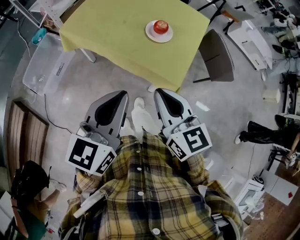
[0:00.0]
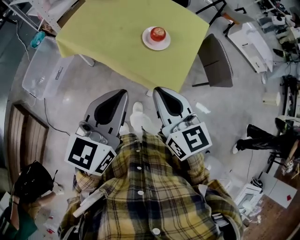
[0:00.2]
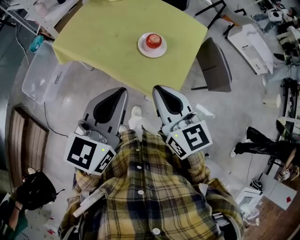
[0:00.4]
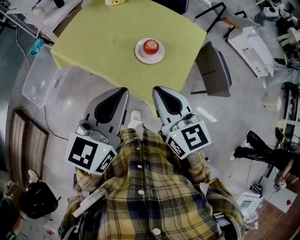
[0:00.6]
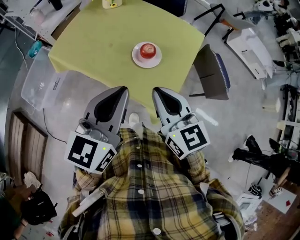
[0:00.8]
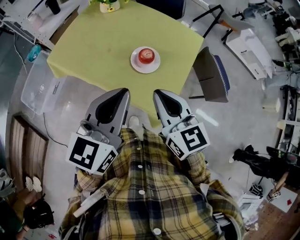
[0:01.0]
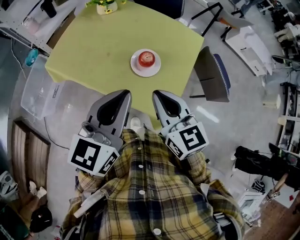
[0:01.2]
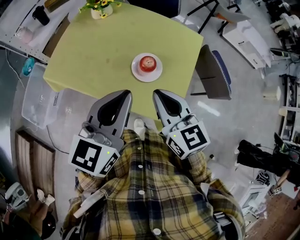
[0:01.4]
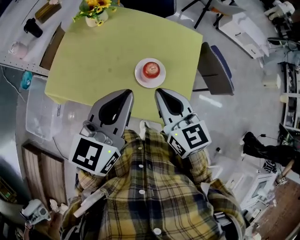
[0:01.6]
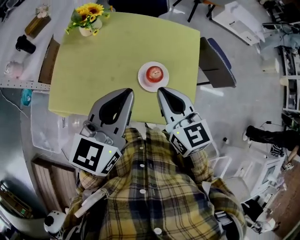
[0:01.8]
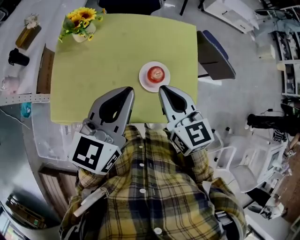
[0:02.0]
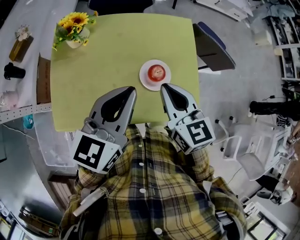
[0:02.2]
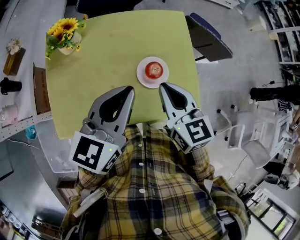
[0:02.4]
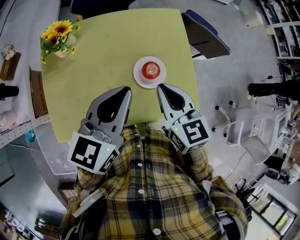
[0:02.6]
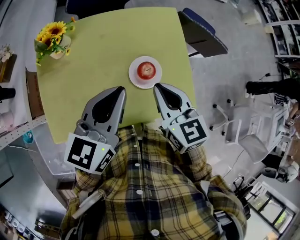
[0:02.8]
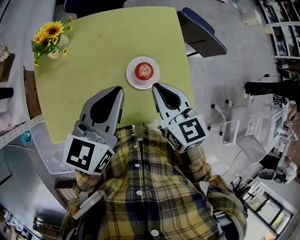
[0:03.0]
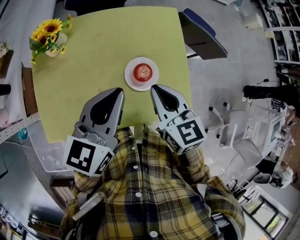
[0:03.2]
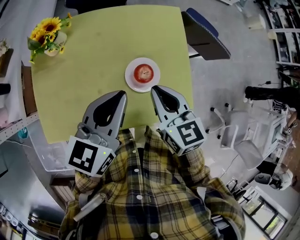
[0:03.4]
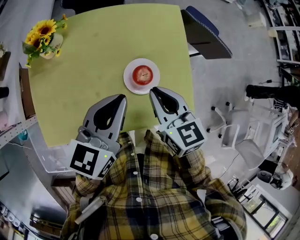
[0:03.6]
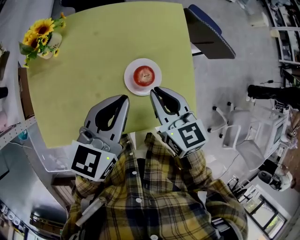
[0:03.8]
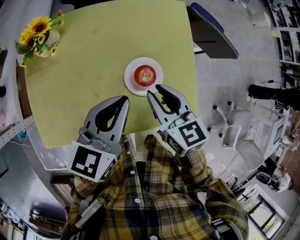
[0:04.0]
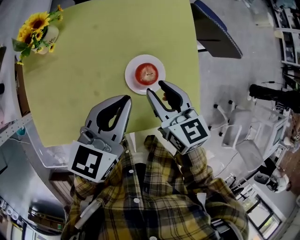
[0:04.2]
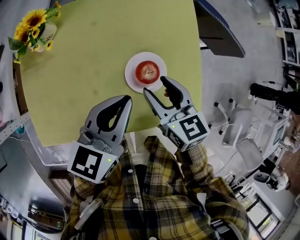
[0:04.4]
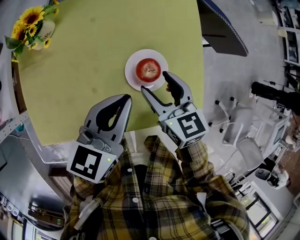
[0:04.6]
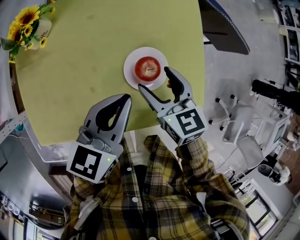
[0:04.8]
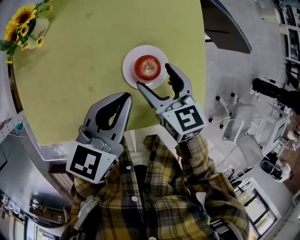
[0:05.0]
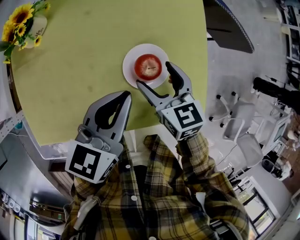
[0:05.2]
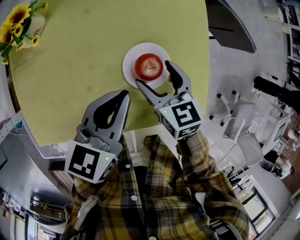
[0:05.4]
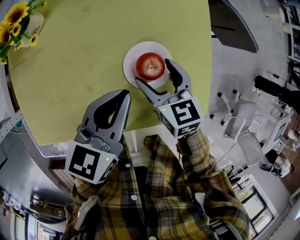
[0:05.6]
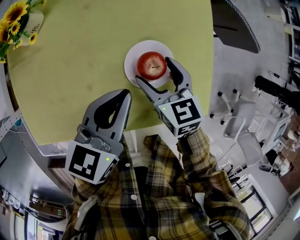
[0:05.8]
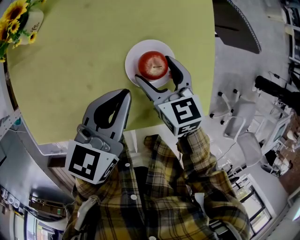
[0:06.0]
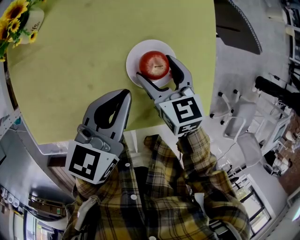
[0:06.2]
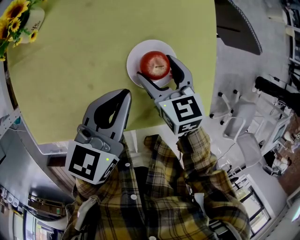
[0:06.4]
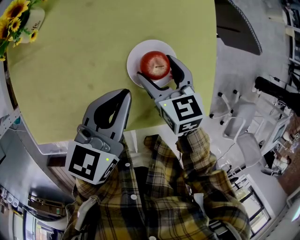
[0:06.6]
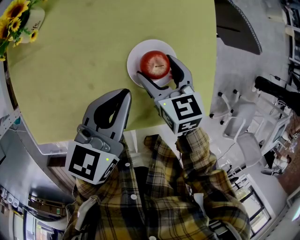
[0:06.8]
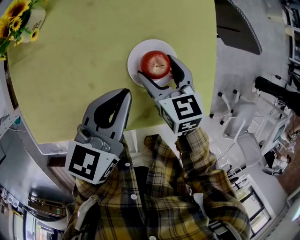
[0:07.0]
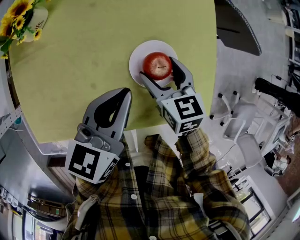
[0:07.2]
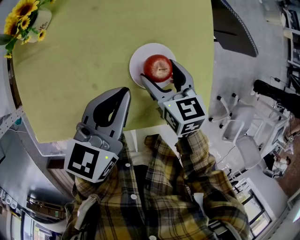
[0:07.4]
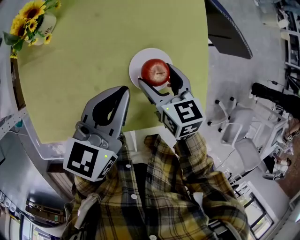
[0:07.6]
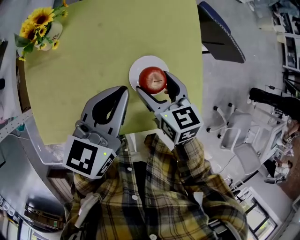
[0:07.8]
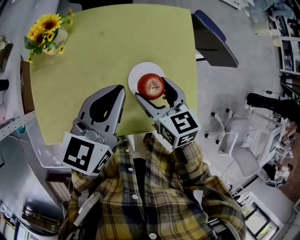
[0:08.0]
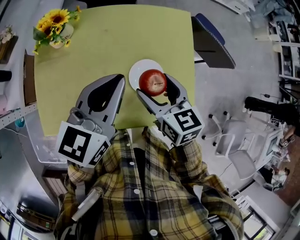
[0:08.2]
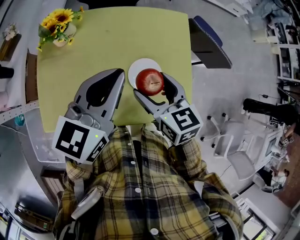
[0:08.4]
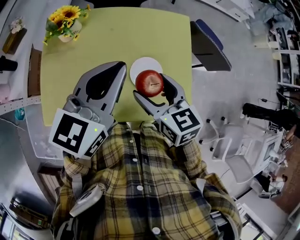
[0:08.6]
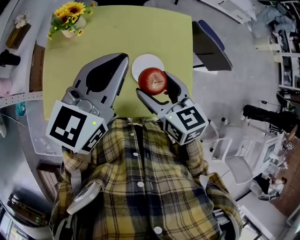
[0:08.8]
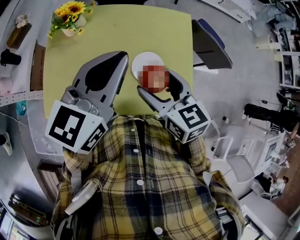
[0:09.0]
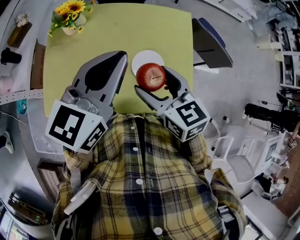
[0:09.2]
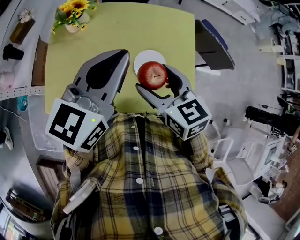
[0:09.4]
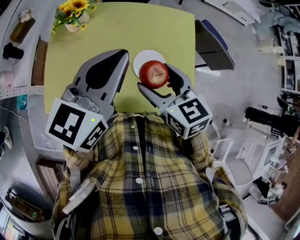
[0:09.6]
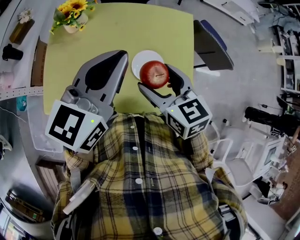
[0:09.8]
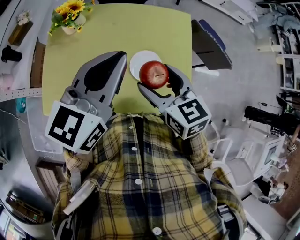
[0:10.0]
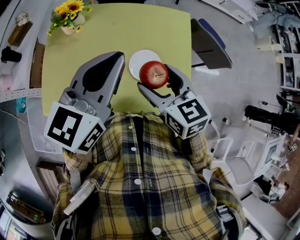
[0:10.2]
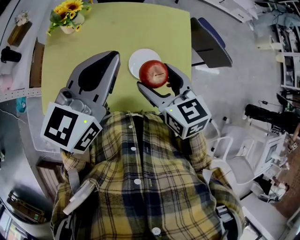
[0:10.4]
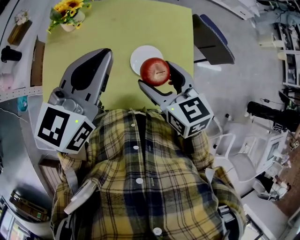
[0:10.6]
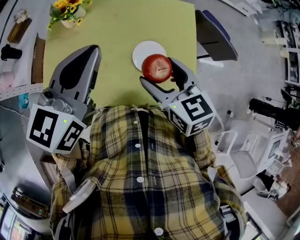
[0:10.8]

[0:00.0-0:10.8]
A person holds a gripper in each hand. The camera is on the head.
0:00.0 to 0:01.6: The two grippers go about 30 cm forward.
0:01.6 to 0:03.0: The left gripper moves roughly 10 cm, and rotates about 20 degrees; the right gripper shifts by some 10 cm, and turns by about 30 degrees.
0:03.0 to 0:04.6: Both grippers move downward, approximately 10 cm. The right gripper opens its fingers.
0:04.6 to 0:06.2: The left gripper shifts by approximately 5 cm. Meanwhile the right gripper shifts approximately 5 cm downward.
0:06.2 to 0:07.8: Both grippers move upward, roughly 10 cm.
0:07.8 to 0:09.2: The right gripper moves upward and backward, roughly 15 cm; the left gripper goes roughly 15 cm upward.
0:09.2 to 0:10.8: There are only small adjustments of the grippers.

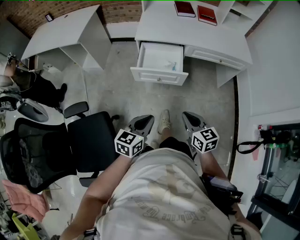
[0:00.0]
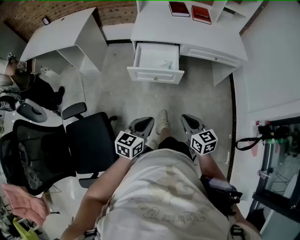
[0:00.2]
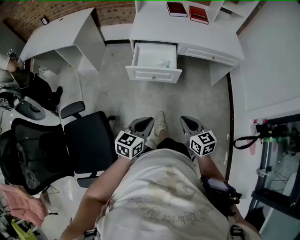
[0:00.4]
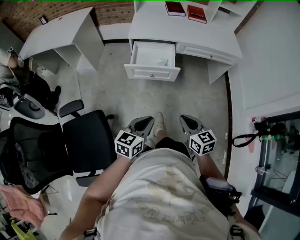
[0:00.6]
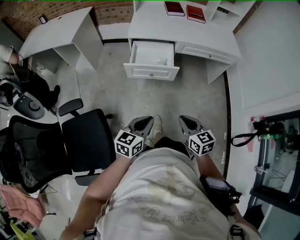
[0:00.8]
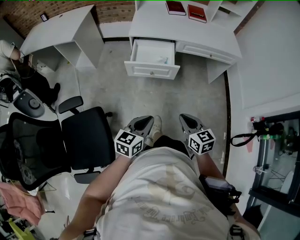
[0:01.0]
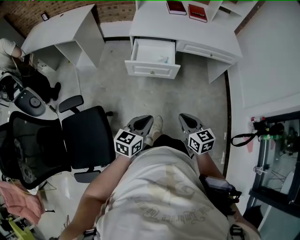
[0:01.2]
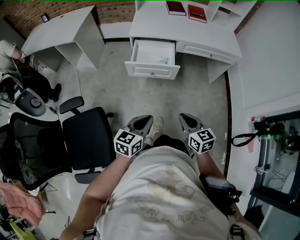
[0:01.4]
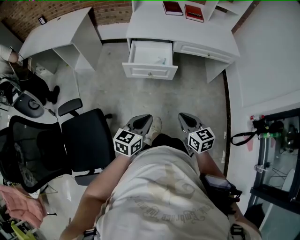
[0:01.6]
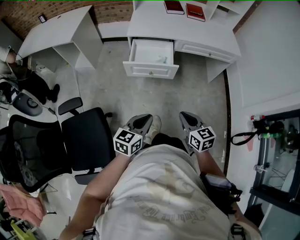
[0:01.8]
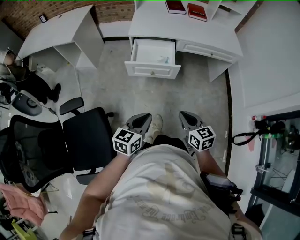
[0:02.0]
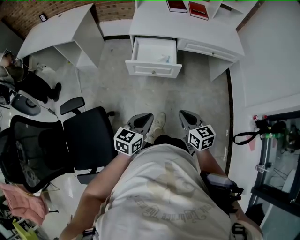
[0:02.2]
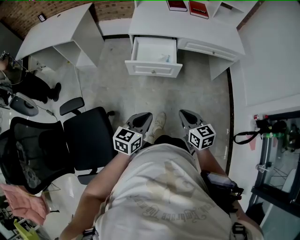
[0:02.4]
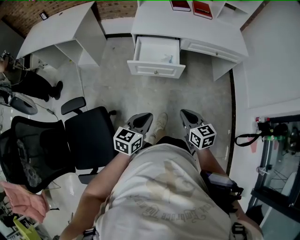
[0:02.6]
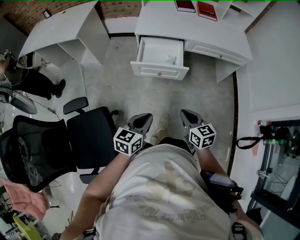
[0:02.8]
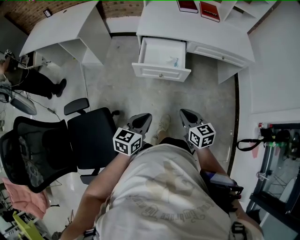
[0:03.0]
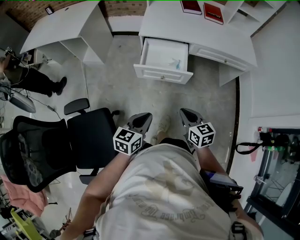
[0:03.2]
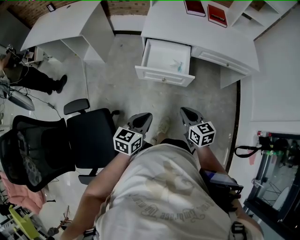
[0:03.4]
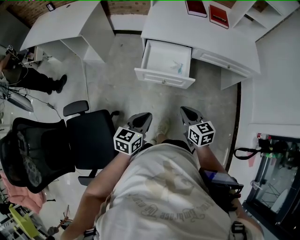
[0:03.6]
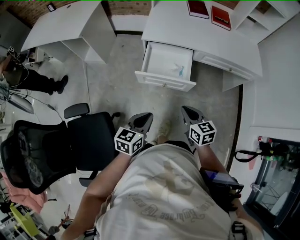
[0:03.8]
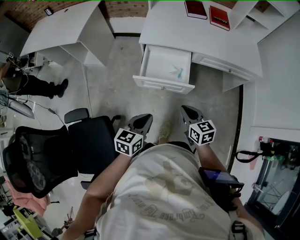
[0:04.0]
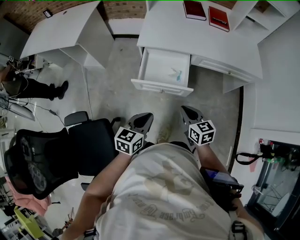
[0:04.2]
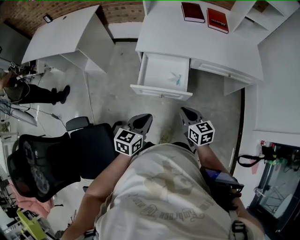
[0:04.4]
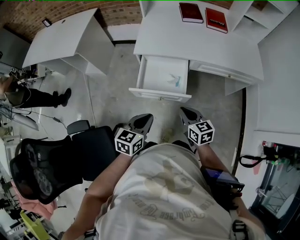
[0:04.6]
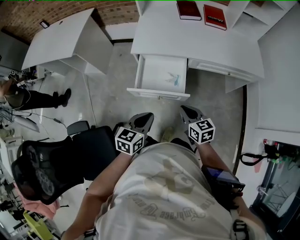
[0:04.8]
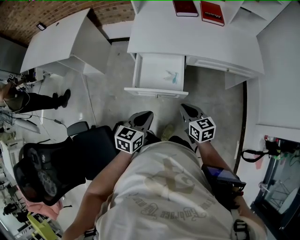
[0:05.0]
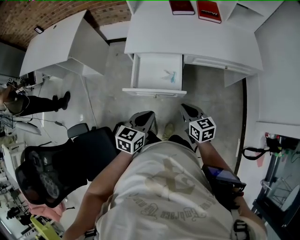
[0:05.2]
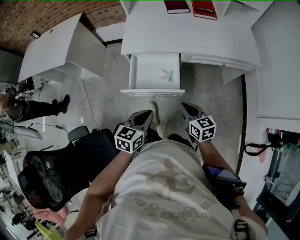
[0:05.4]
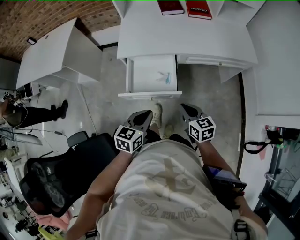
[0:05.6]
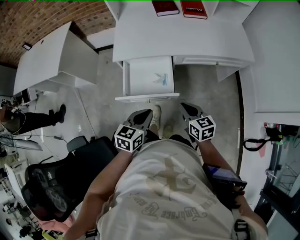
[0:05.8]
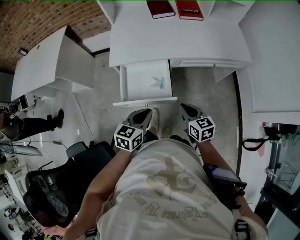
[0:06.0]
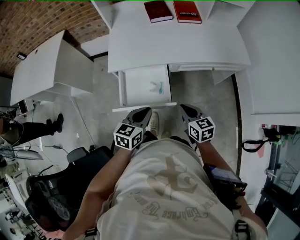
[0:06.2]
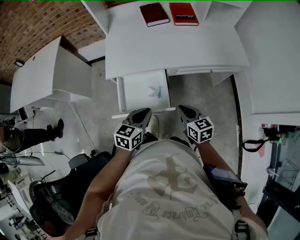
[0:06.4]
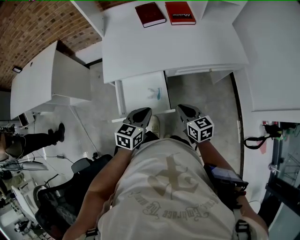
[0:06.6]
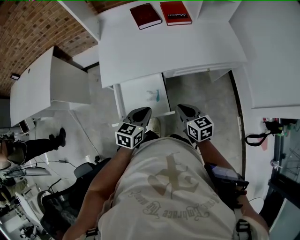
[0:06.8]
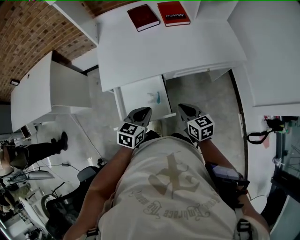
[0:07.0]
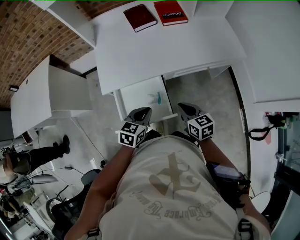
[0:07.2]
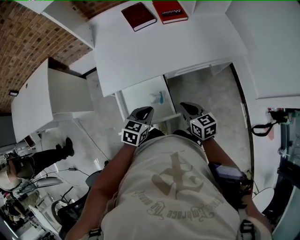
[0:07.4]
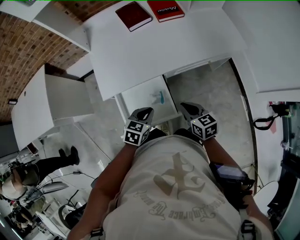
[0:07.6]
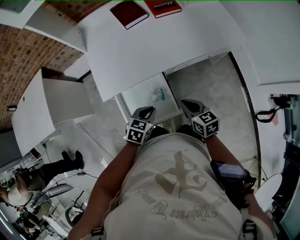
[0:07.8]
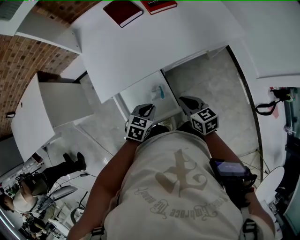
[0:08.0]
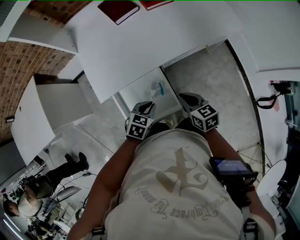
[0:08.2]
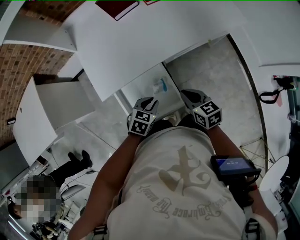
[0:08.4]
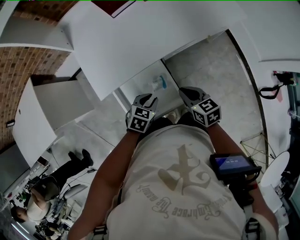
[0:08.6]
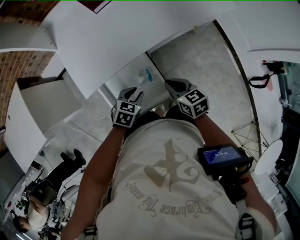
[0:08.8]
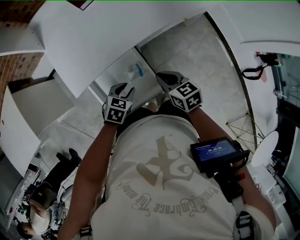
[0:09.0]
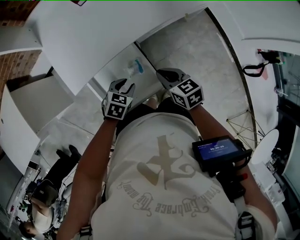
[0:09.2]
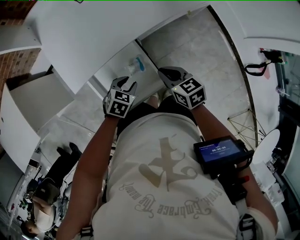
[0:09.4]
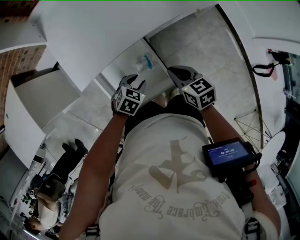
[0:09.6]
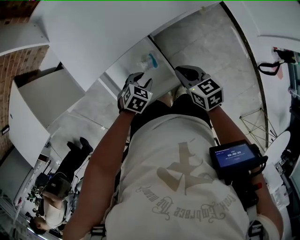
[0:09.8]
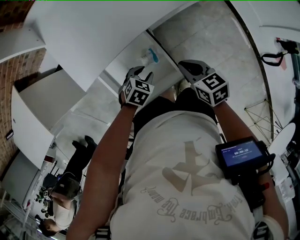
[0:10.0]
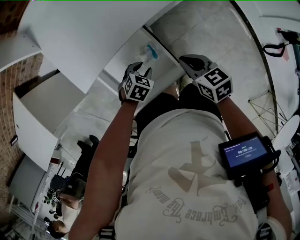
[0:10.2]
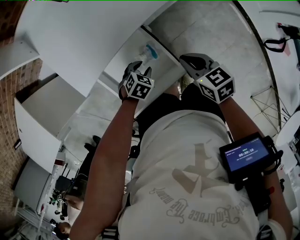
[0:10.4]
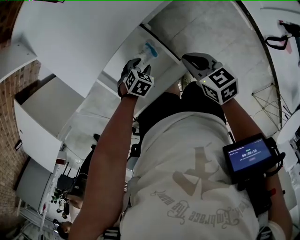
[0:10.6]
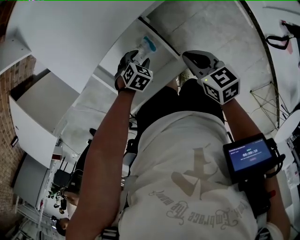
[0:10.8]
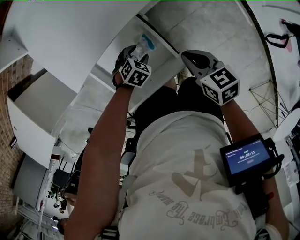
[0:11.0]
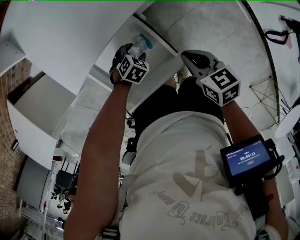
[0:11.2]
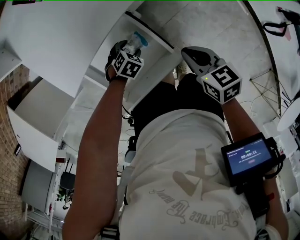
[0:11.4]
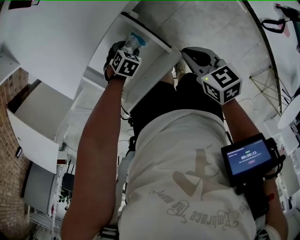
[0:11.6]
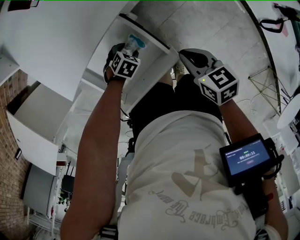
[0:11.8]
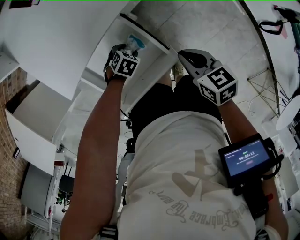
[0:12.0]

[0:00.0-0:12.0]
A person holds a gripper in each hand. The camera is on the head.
0:00.0 to 0:01.6: Both grippers move backward, roughly 5 cm.
0:01.6 to 0:03.0: The two grippers go about 5 cm forward.
0:03.0 to 0:04.4: The grippers both shift forward by about 15 cm.
0:04.4 to 0:06.0: The right gripper heads to the right and forward, covering roughly 10 cm, while the left gripper moves forward and to the right, some 15 cm.
0:06.0 to 0:07.6: The right gripper moves forward, some 10 cm. Meanwhile the left gripper travels forward and downward by approximately 15 cm, and rotates some 30 degrees.
0:07.6 to 0:09.0: The left gripper goes approximately 10 cm downward, changes its angle by roughly 20 degrees, and opens up.
0:09.0 to 0:10.4: The left gripper shifts roughly 10 cm downward.
0:10.4 to 0:12.0: The left gripper heads downward, covering some 10 cm. The right gripper shifts by approximately 5 cm.

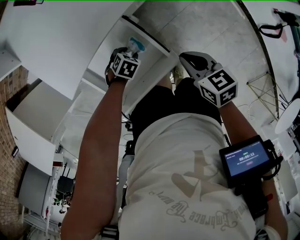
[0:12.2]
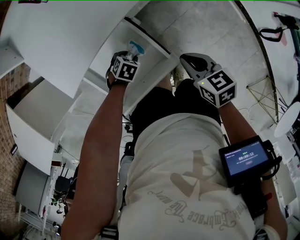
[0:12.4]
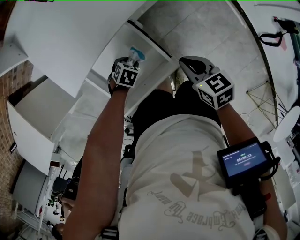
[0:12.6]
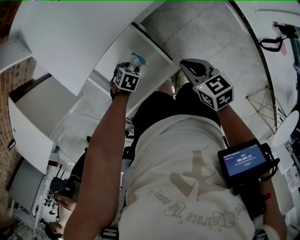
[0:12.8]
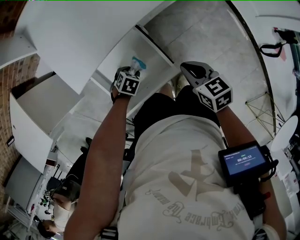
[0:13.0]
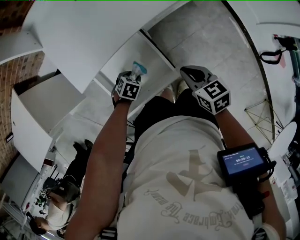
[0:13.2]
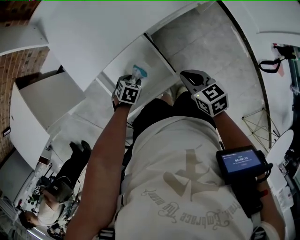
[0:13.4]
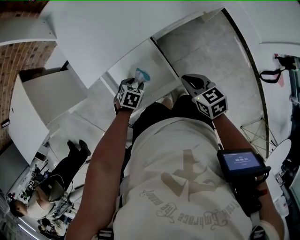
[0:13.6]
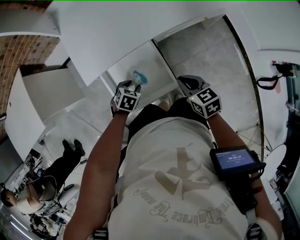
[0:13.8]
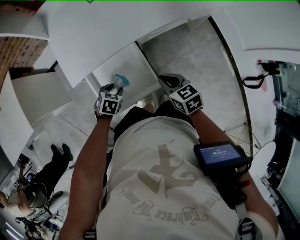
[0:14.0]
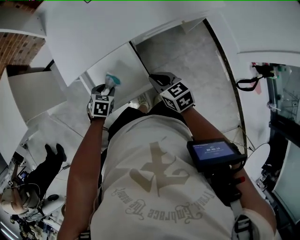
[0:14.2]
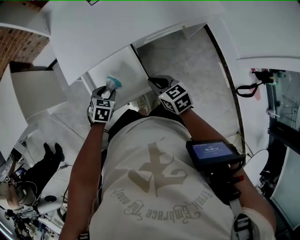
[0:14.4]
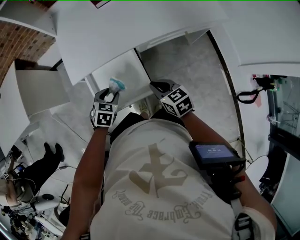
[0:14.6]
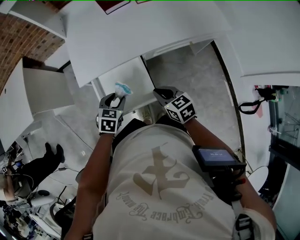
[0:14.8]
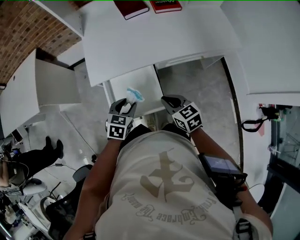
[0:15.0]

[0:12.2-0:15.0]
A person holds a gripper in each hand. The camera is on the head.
0:12.2 to 0:13.6: The left gripper heads upward, covering roughly 10 cm.
0:13.6 to 0:15.0: The right gripper is displaced upward by roughly 5 cm. The left gripper moves upward, some 15 cm, and swivels roughly 30 degrees.
